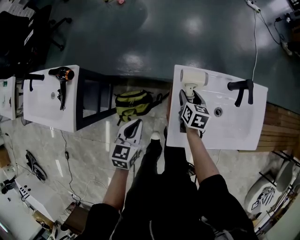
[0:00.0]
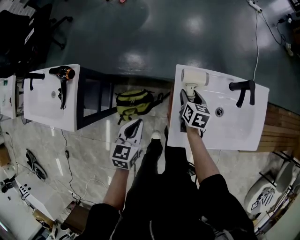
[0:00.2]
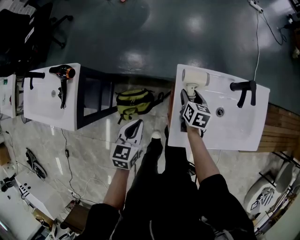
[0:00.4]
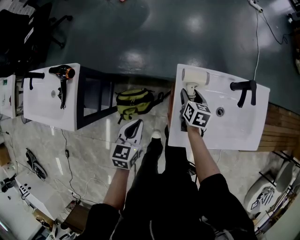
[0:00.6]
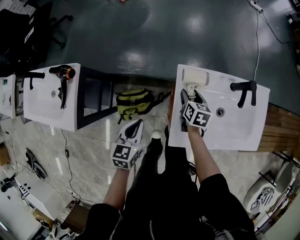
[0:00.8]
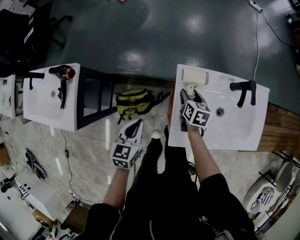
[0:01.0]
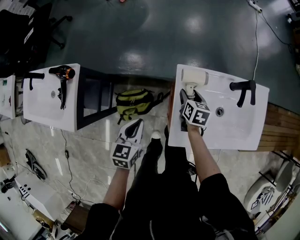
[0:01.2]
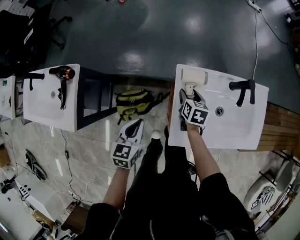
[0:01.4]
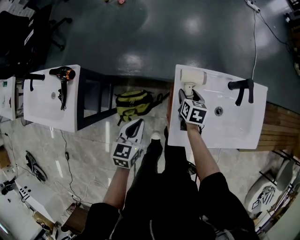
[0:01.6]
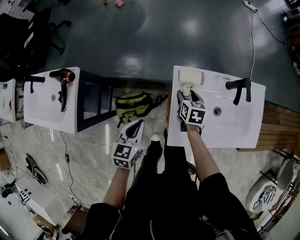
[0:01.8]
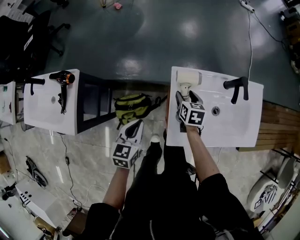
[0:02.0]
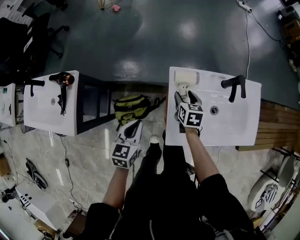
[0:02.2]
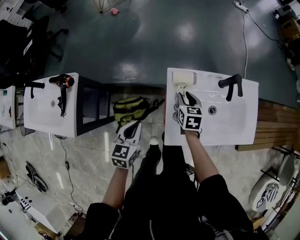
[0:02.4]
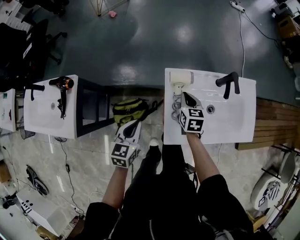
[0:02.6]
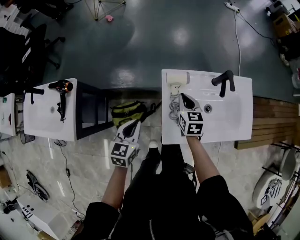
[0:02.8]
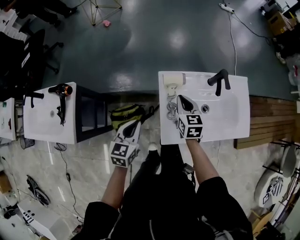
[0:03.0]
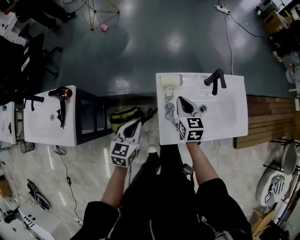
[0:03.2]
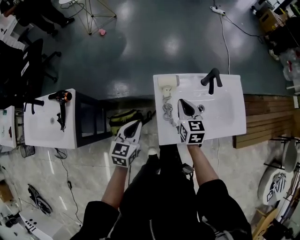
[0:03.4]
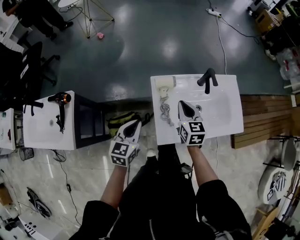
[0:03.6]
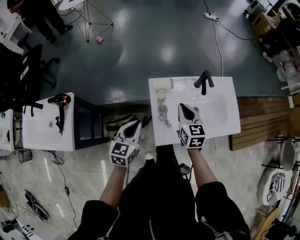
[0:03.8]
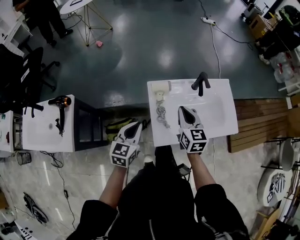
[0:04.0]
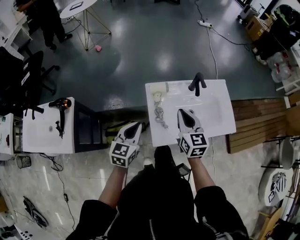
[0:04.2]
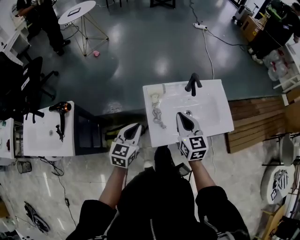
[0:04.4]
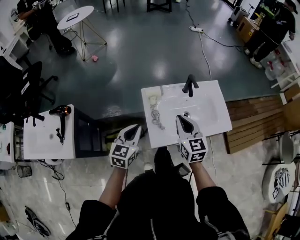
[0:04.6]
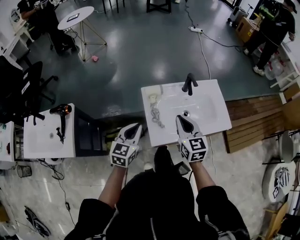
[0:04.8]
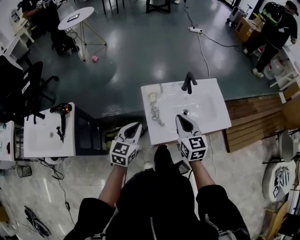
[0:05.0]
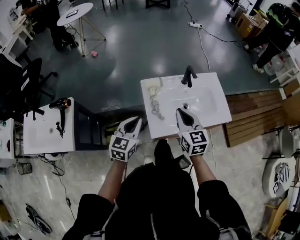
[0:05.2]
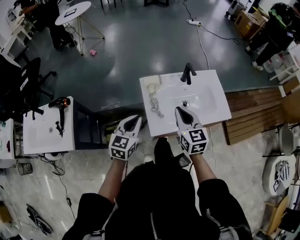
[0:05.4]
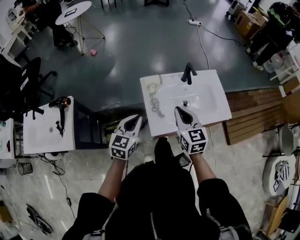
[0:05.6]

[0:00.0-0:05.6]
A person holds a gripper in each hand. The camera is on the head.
0:00.0 to 0:01.4: The grippers make only small movements.
0:01.4 to 0:02.8: The right gripper shifts some 10 cm upward, and closes.
0:02.8 to 0:04.2: The right gripper shifts roughly 20 cm upward, backward and to the right. Meanwhile the left gripper moves upward and to the right, roughly 10 cm.
0:04.2 to 0:05.6: The right gripper shifts some 5 cm backward.

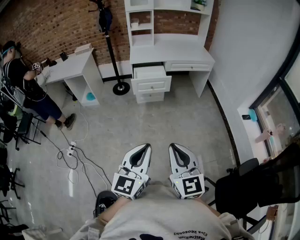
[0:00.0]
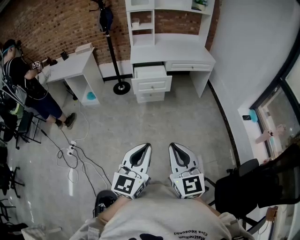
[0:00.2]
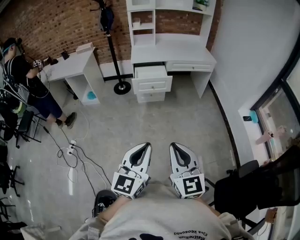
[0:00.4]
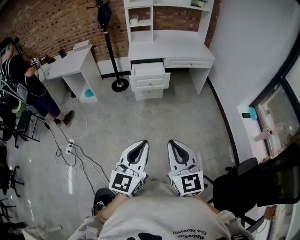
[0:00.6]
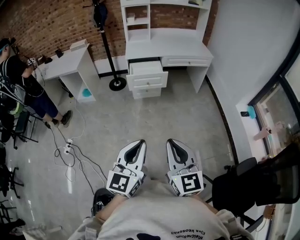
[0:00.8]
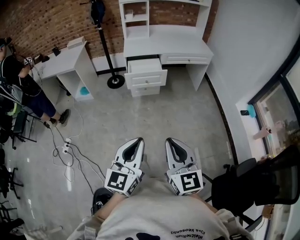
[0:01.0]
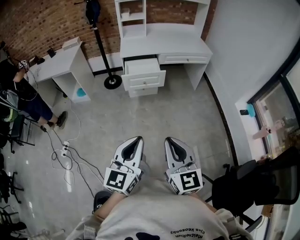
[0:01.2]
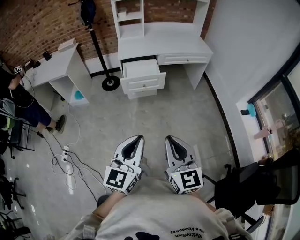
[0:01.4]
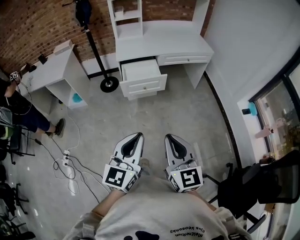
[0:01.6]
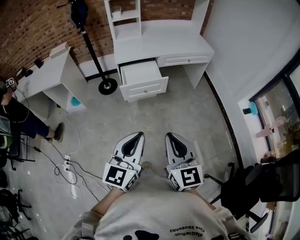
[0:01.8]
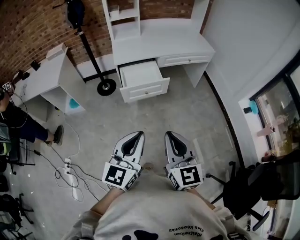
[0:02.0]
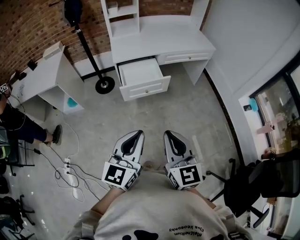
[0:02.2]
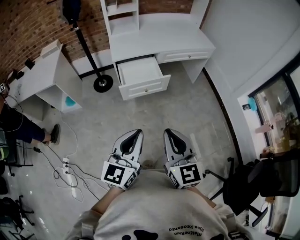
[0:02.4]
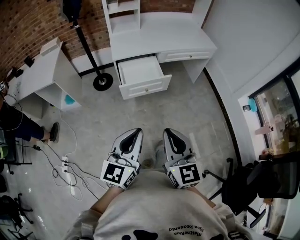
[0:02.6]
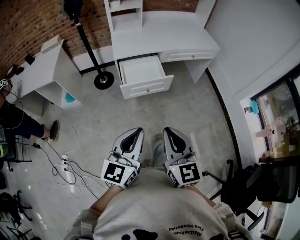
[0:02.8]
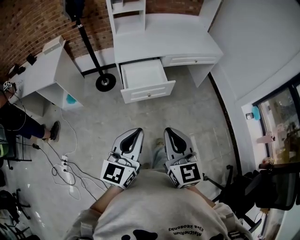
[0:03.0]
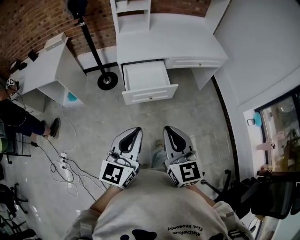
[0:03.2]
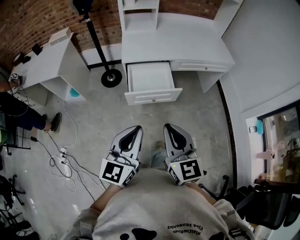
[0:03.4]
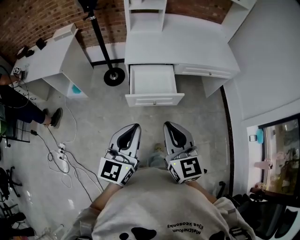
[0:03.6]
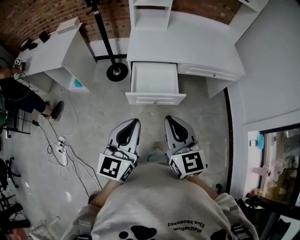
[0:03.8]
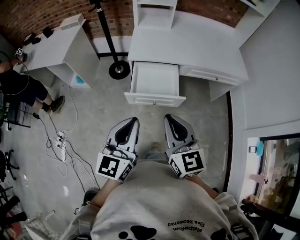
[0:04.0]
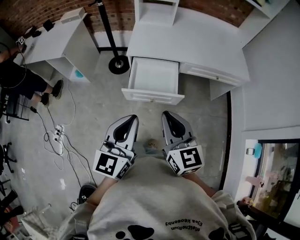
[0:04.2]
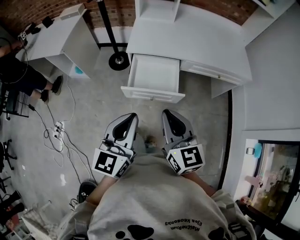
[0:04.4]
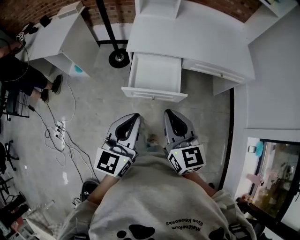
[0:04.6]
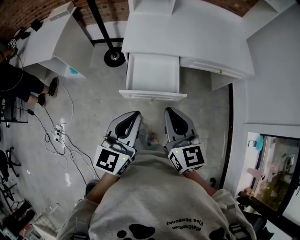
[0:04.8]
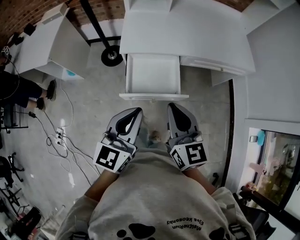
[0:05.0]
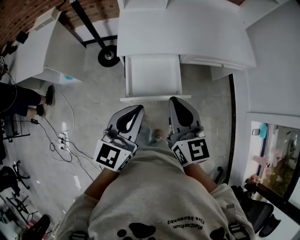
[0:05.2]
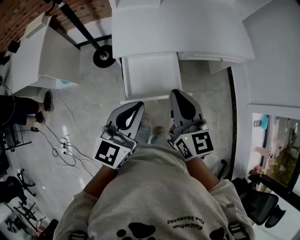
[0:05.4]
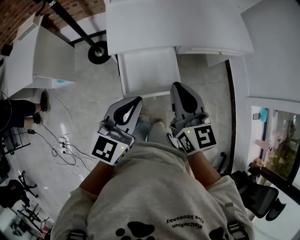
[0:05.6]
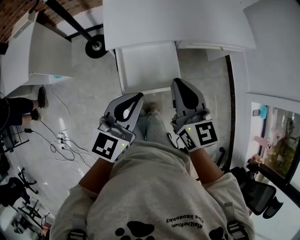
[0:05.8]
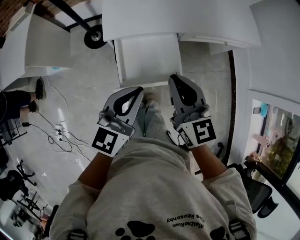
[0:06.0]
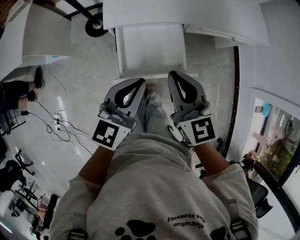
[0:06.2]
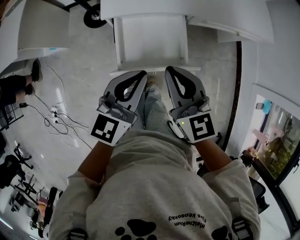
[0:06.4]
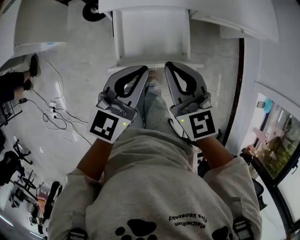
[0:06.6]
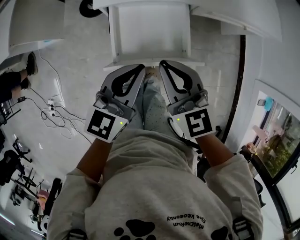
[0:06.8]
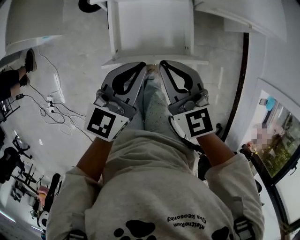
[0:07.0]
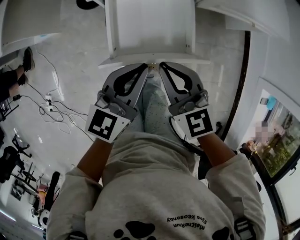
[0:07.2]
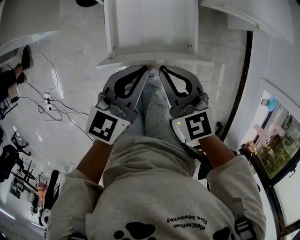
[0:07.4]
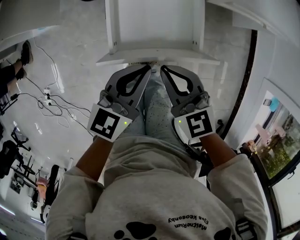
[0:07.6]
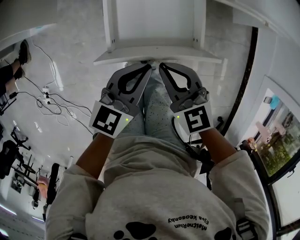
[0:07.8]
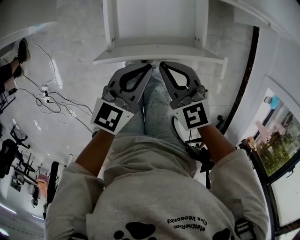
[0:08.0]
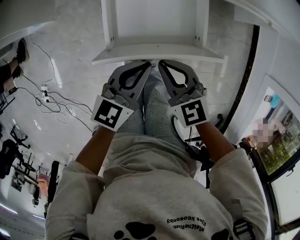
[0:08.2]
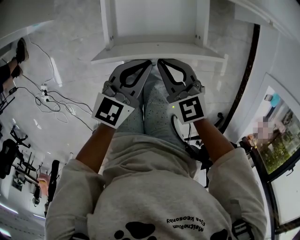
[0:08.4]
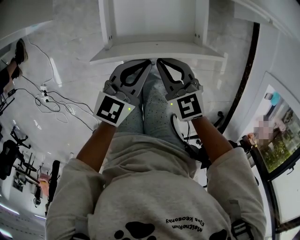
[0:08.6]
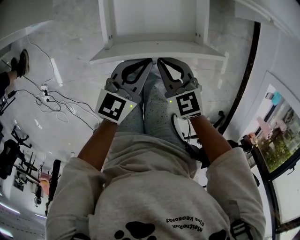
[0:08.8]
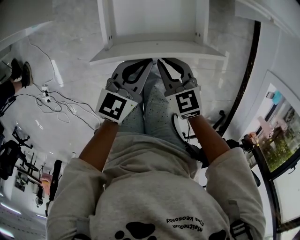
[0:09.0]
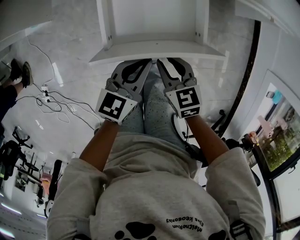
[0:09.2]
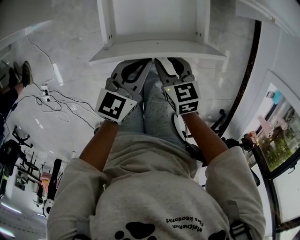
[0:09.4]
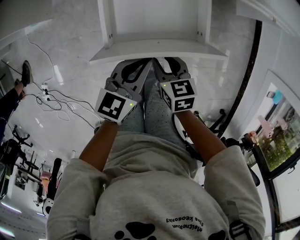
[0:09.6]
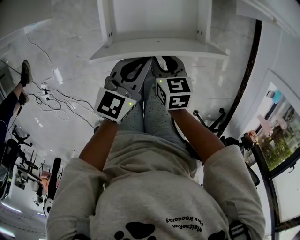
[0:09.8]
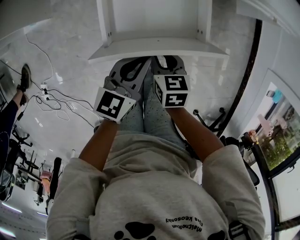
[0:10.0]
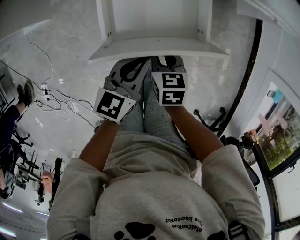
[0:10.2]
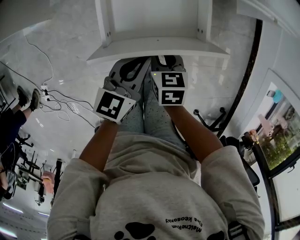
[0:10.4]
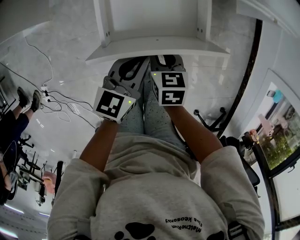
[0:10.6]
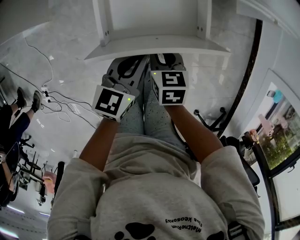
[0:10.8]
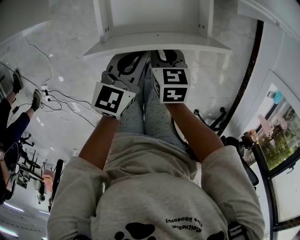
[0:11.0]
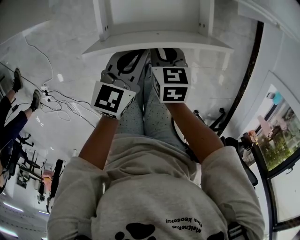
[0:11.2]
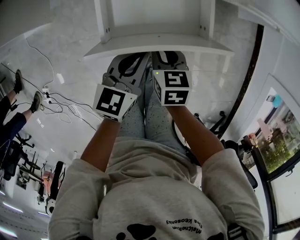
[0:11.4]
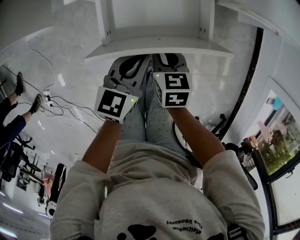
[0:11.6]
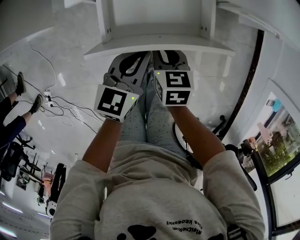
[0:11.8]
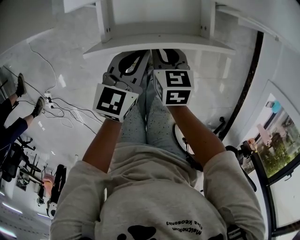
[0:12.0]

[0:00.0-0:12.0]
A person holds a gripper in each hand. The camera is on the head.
0:00.0 to 0:01.6: The grippers both shift forward by about 25 cm.
0:01.6 to 0:03.0: Both grippers move forward and to the left, approximately 20 cm.
0:03.0 to 0:04.4: Both grippers move forward, about 20 cm. The right gripper rotates roughly 20 degrees.
0:04.4 to 0:06.0: The grippers both shift forward by roughly 20 cm. The left gripper rotates roughly 20 degrees.
0:06.0 to 0:07.6: Both grippers travel together downward, approximately 20 cm.
0:07.6 to 0:09.0: The two grippers go about 10 cm downward.
0:09.0 to 0:10.4: The right gripper ends up some 5 cm from where it was, and swivels some 30 degrees.
0:10.4 to 0:12.0: Both grippers move forward, some 10 cm.

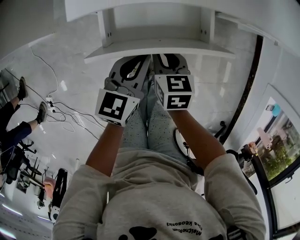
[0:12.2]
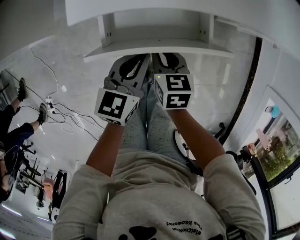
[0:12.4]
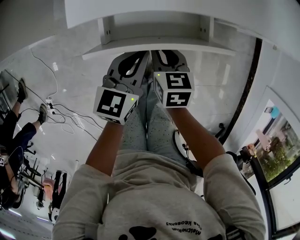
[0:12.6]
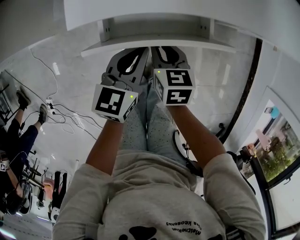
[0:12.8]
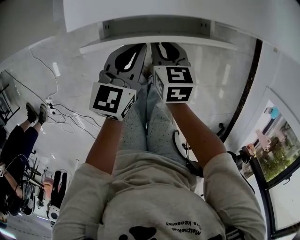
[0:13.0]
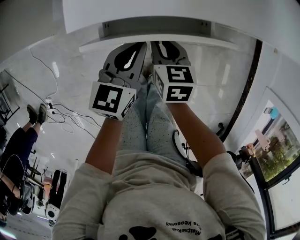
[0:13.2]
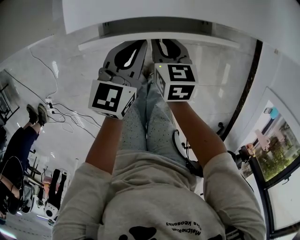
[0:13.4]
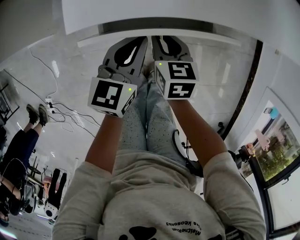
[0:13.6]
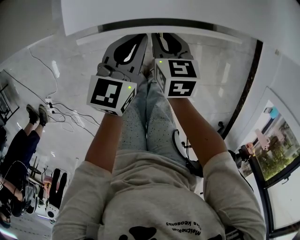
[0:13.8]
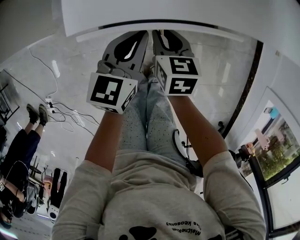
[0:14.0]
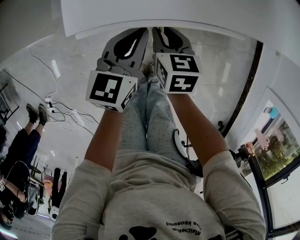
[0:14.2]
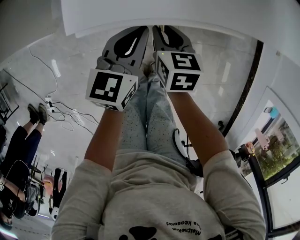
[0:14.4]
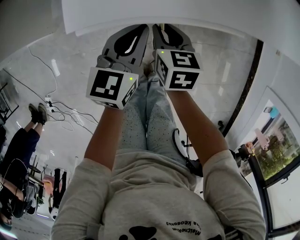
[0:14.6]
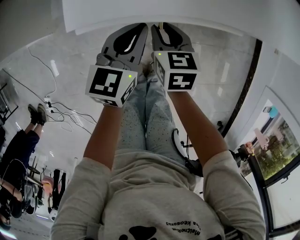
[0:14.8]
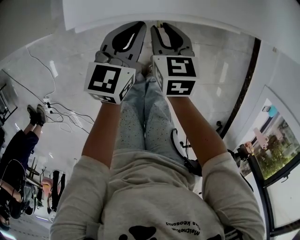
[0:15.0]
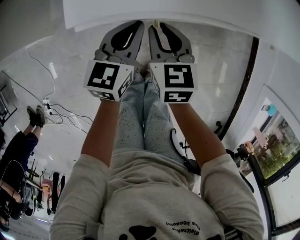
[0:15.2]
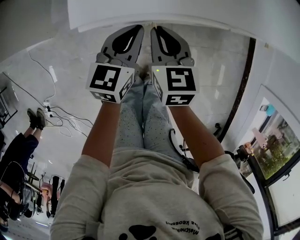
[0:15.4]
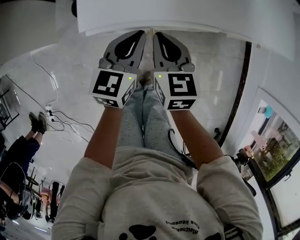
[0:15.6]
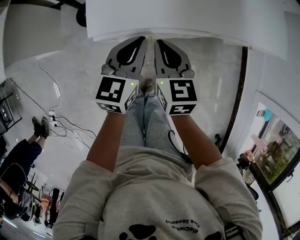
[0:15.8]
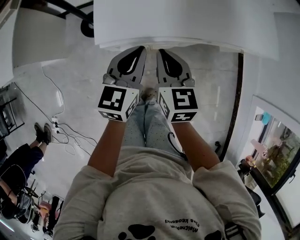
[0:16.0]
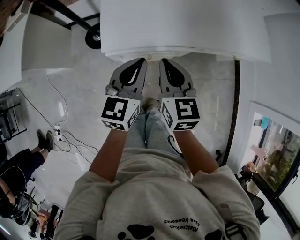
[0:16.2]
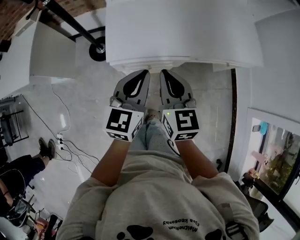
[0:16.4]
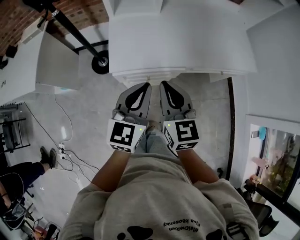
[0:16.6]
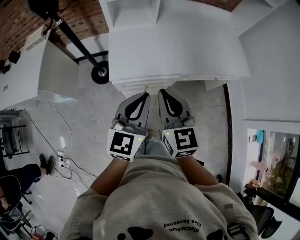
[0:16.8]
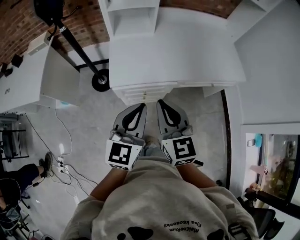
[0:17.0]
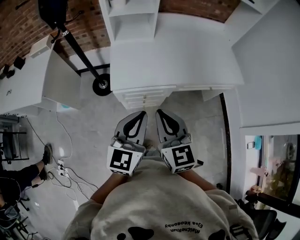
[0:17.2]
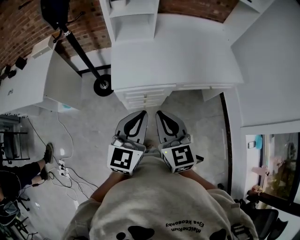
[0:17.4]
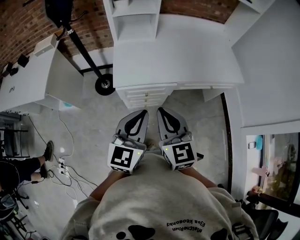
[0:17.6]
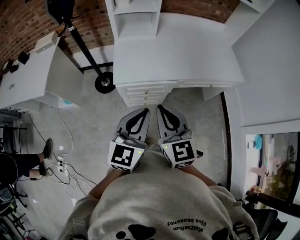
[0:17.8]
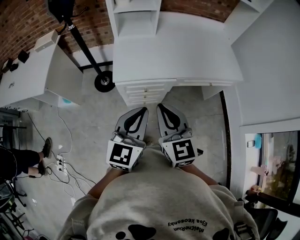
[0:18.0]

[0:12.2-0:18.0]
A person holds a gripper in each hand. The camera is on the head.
0:12.2 to 0:13.6: The grippers both shift forward by some 10 cm.
0:13.6 to 0:15.0: The grippers stay close to where they were, moving slightly.
0:15.0 to 0:16.6: Both grippers move upward, some 40 cm. The right gripper swivels roughly 30 degrees.
0:16.6 to 0:18.0: The grippers both shift backward and upward by approximately 15 cm.
